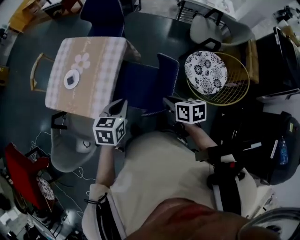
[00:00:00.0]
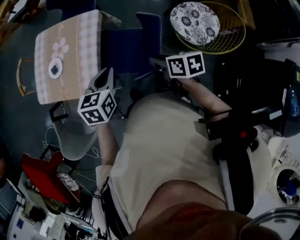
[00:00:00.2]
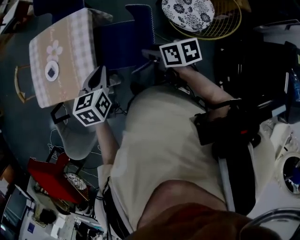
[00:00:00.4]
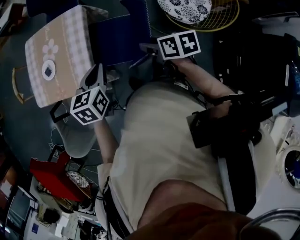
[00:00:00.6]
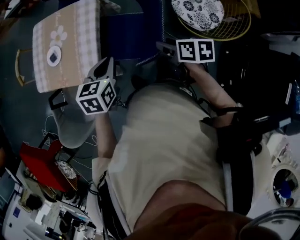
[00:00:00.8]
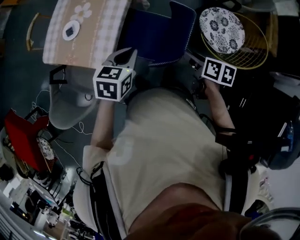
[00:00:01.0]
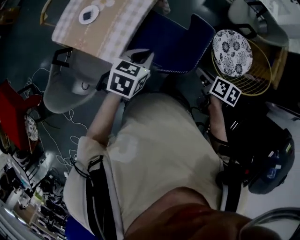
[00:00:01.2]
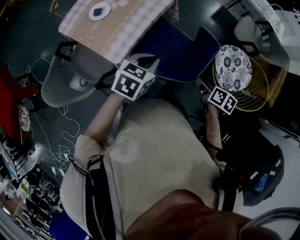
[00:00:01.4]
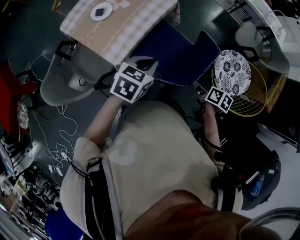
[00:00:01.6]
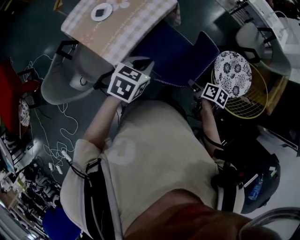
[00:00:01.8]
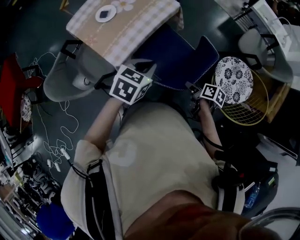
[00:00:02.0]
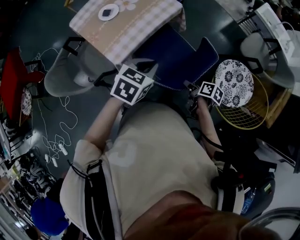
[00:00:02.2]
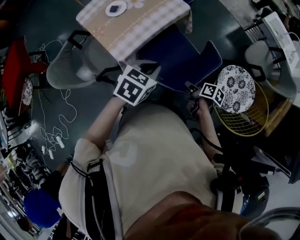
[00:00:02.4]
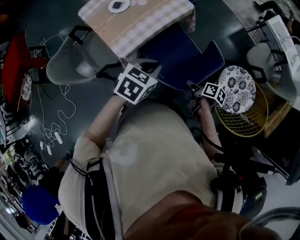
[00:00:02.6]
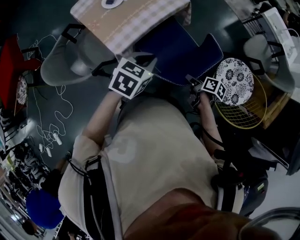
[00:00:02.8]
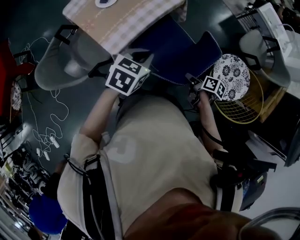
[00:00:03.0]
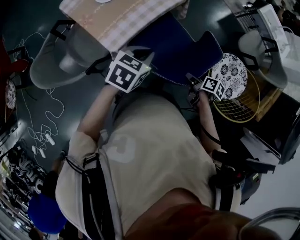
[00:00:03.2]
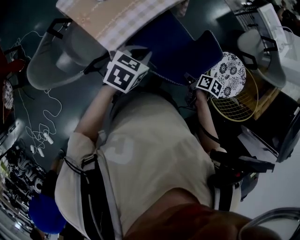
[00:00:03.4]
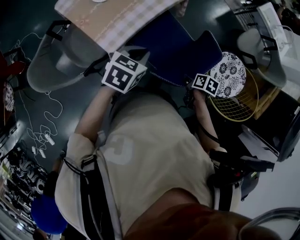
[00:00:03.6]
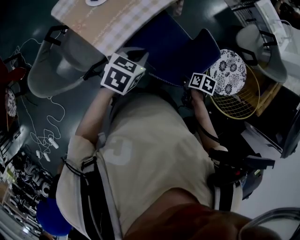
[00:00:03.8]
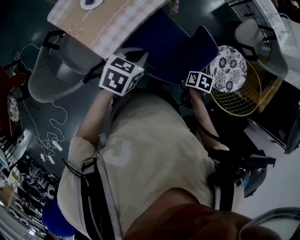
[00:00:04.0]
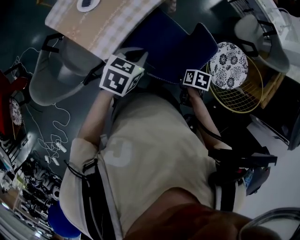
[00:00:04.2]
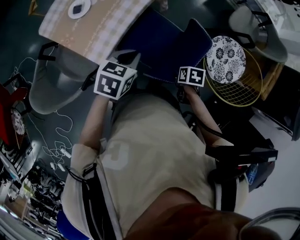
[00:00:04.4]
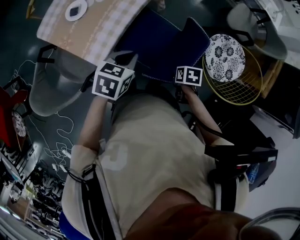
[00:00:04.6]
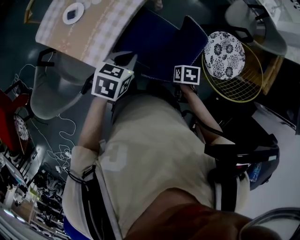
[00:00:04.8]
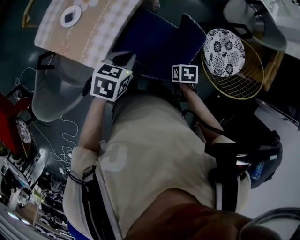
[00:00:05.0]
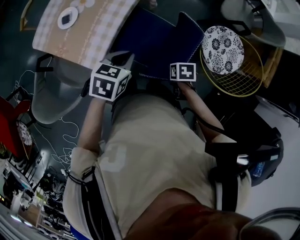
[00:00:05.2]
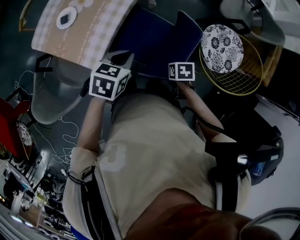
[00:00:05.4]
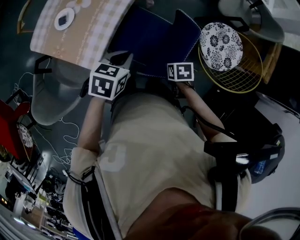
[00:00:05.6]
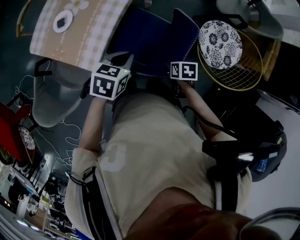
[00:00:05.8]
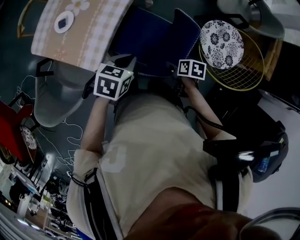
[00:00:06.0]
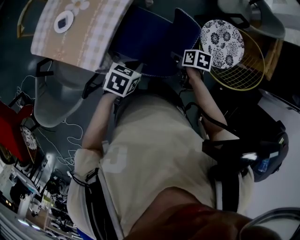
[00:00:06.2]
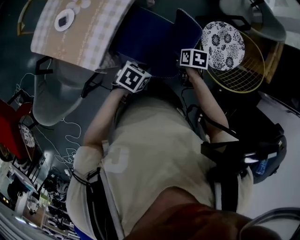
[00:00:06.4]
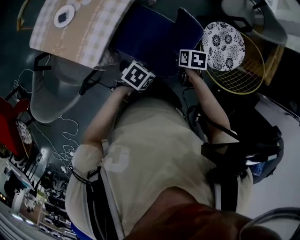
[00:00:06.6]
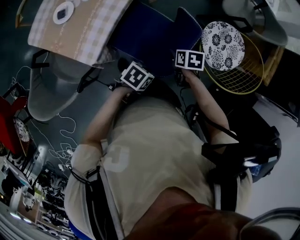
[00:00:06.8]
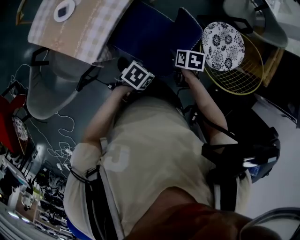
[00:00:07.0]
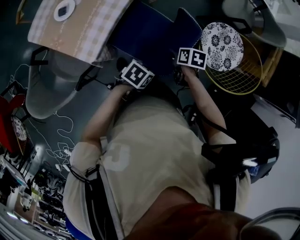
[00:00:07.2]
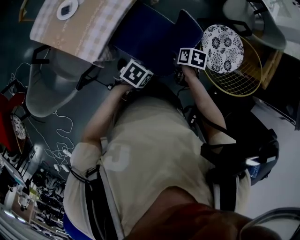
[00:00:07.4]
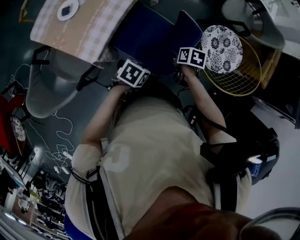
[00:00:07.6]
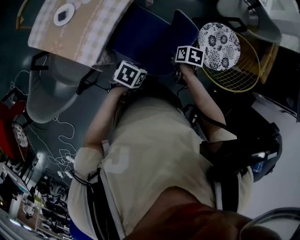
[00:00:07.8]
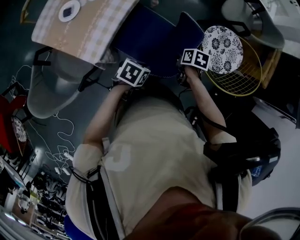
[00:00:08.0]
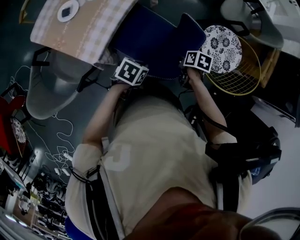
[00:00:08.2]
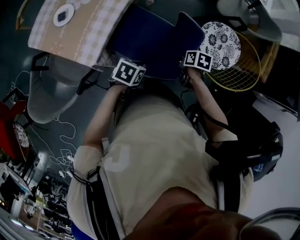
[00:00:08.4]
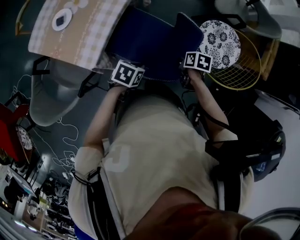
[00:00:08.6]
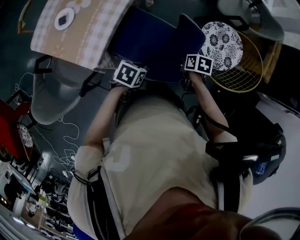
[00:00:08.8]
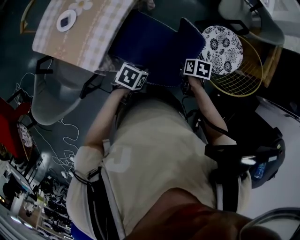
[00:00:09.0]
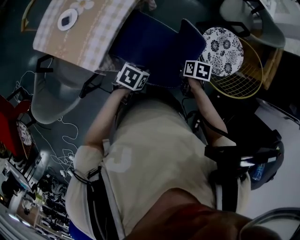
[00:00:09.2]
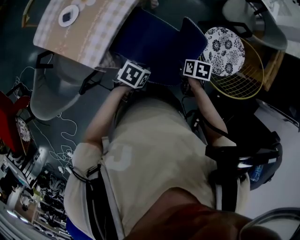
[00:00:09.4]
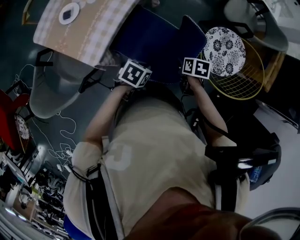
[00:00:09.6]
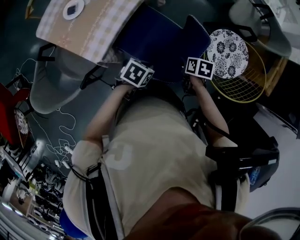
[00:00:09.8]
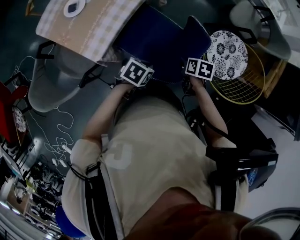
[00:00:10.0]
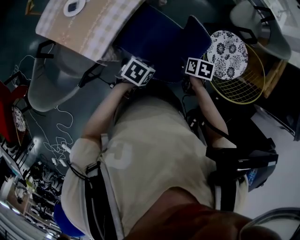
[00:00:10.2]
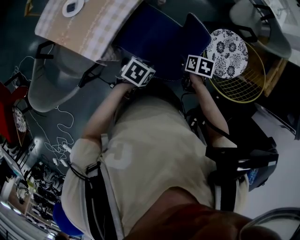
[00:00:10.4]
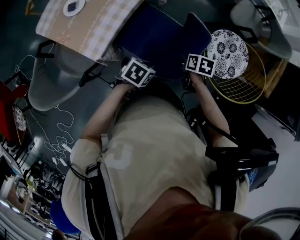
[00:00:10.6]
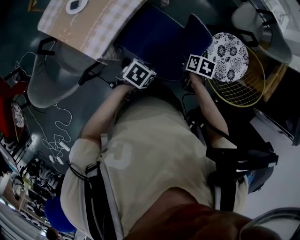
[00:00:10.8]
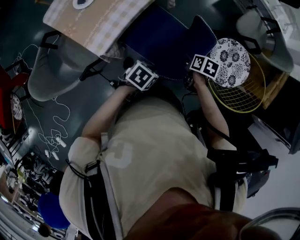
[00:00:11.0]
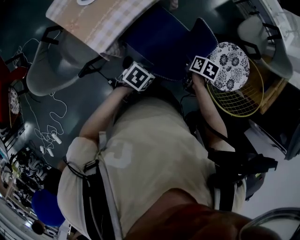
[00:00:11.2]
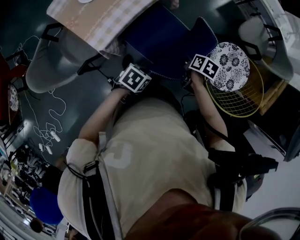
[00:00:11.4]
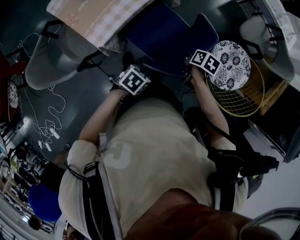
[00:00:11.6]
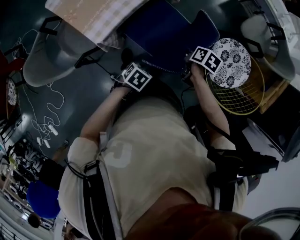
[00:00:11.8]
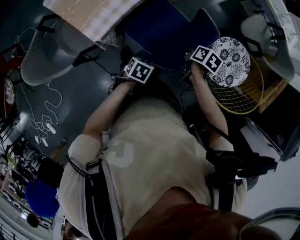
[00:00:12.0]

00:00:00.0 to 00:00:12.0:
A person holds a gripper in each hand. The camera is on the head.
00:00:06.0 to 00:00:07.6: The left gripper is displaced downward by roughly 10 cm.
00:00:10.4 to 00:00:12.0: The left gripper is displaced downward by approximately 10 cm.

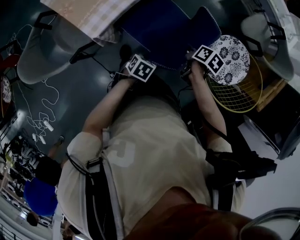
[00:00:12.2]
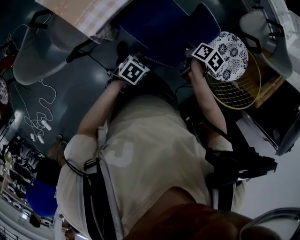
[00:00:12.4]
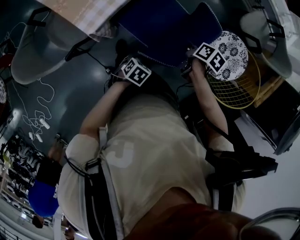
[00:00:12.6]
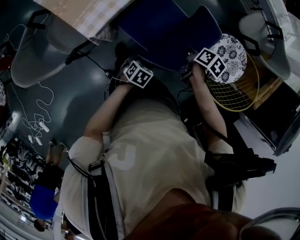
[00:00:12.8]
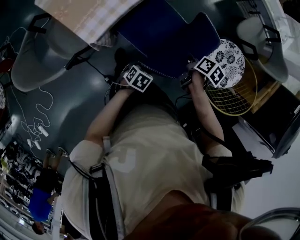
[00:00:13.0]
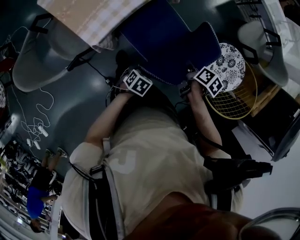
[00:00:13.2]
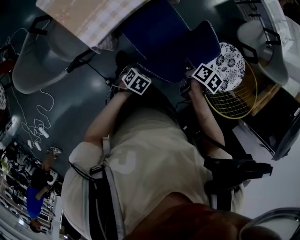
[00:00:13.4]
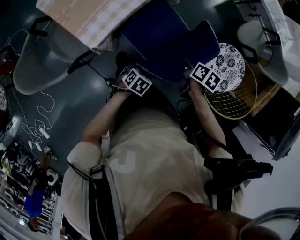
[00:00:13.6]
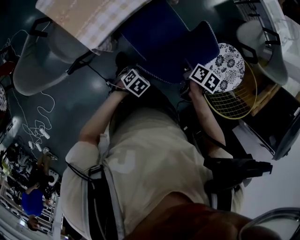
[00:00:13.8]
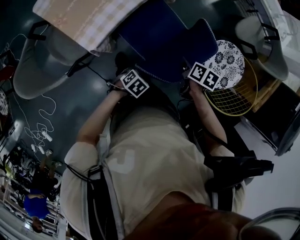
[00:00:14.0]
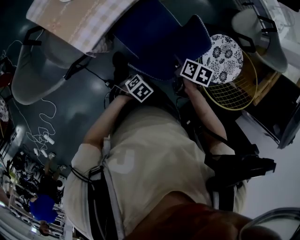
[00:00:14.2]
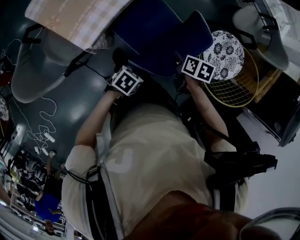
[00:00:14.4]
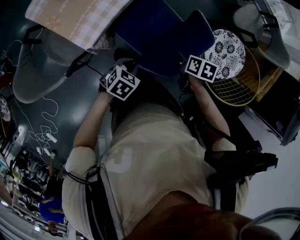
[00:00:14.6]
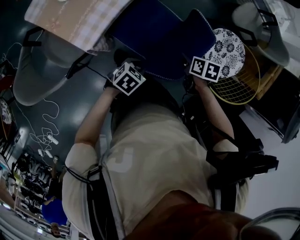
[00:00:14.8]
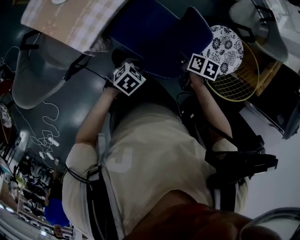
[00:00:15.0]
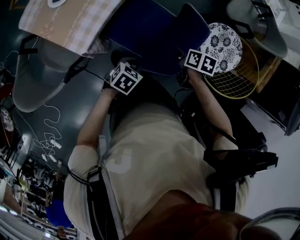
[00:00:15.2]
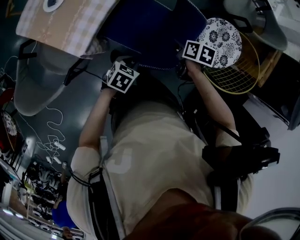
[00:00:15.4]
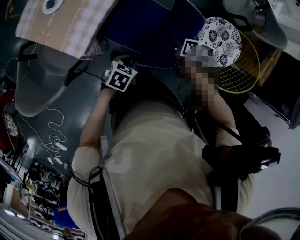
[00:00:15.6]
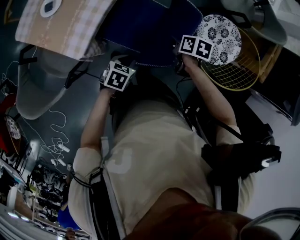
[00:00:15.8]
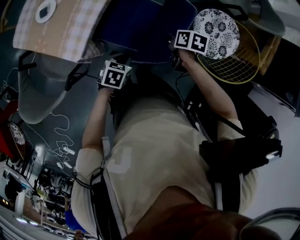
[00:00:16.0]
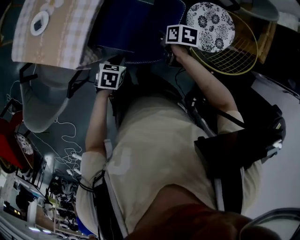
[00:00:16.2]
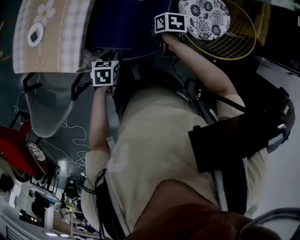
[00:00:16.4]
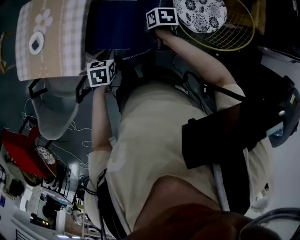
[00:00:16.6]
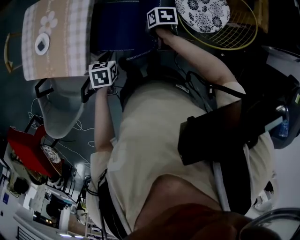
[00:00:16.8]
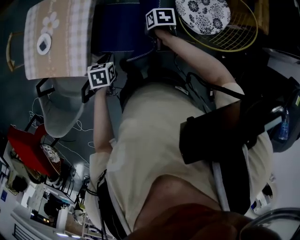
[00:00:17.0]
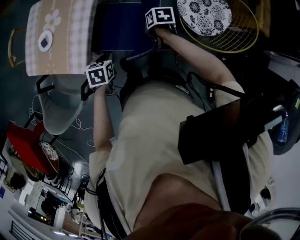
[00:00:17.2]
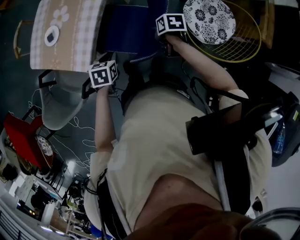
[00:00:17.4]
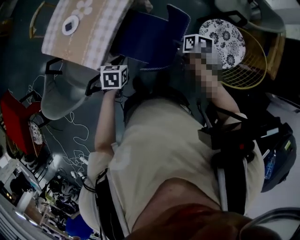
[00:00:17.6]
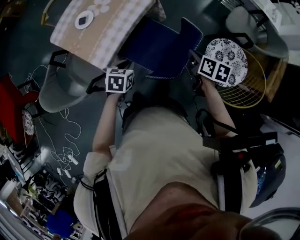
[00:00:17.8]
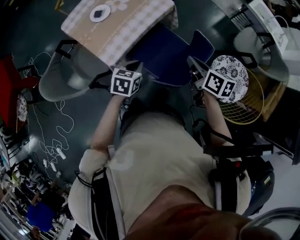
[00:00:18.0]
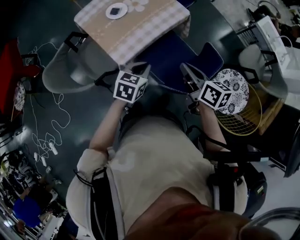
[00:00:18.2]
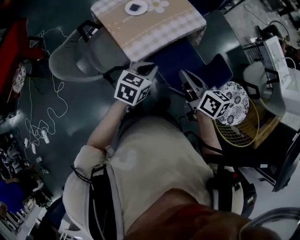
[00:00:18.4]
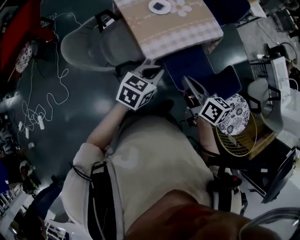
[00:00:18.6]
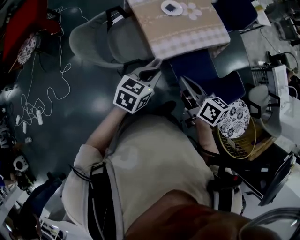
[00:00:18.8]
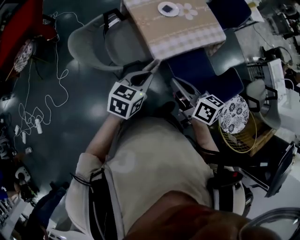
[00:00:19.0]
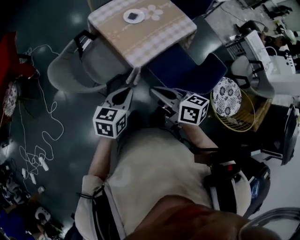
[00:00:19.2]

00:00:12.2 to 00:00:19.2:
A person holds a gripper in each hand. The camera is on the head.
00:00:12.2 to 00:00:13.6: The left gripper opens up.
00:00:13.6 to 00:00:15.0: The left gripper is displaced upward by roughly 5 cm, and changes its angle by approximately 20 degrees.
00:00:15.0 to 00:00:16.4: The left gripper ends up approximately 10 cm from where it was.
00:00:16.4 to 00:00:17.8: The left gripper shifts some 10 cm upward.
00:00:17.8 to 00:00:19.2: The left gripper changes place by approximately 35 cm, and turns by about 30 degrees.

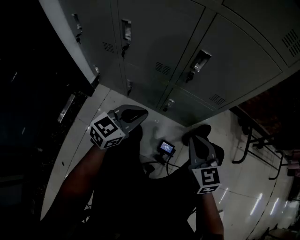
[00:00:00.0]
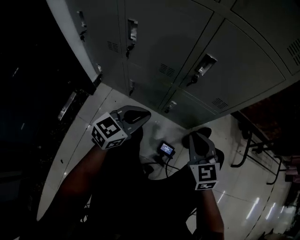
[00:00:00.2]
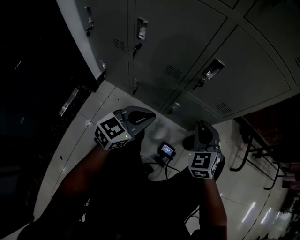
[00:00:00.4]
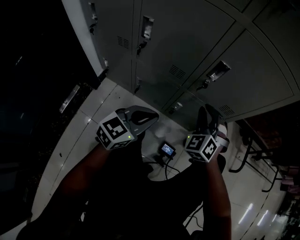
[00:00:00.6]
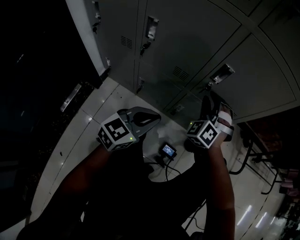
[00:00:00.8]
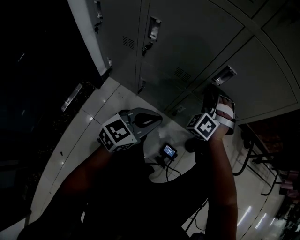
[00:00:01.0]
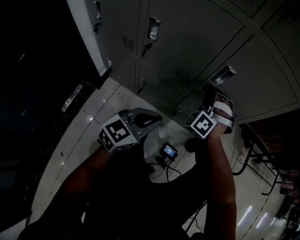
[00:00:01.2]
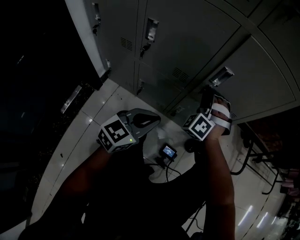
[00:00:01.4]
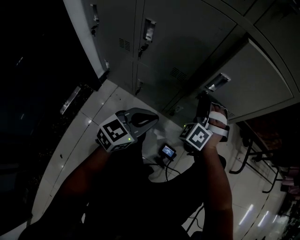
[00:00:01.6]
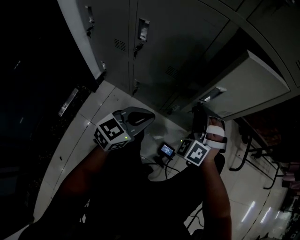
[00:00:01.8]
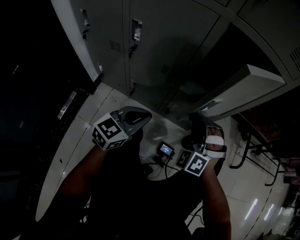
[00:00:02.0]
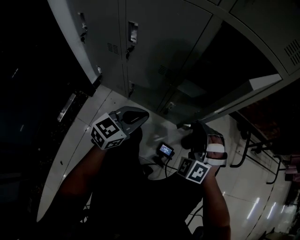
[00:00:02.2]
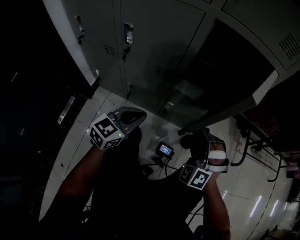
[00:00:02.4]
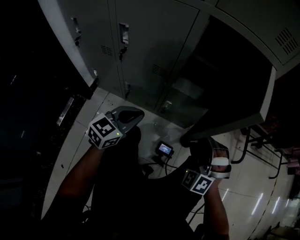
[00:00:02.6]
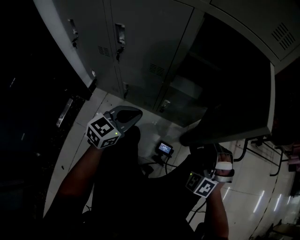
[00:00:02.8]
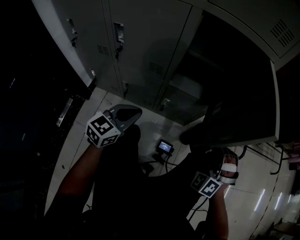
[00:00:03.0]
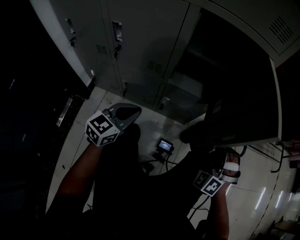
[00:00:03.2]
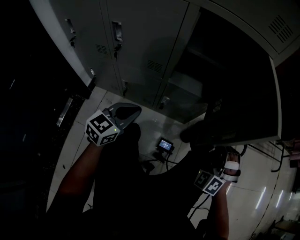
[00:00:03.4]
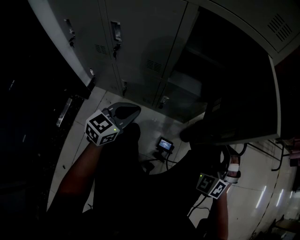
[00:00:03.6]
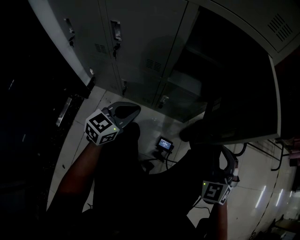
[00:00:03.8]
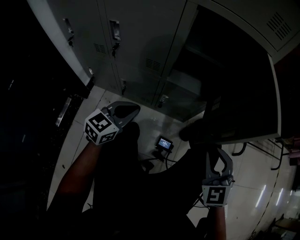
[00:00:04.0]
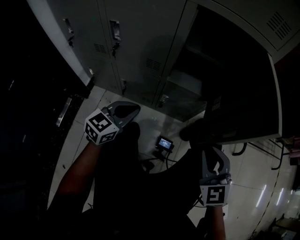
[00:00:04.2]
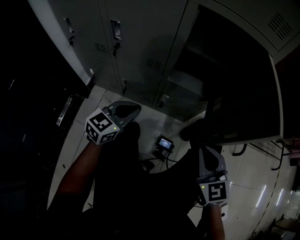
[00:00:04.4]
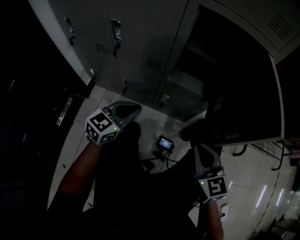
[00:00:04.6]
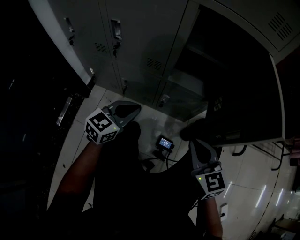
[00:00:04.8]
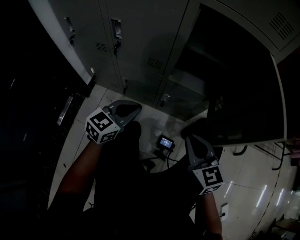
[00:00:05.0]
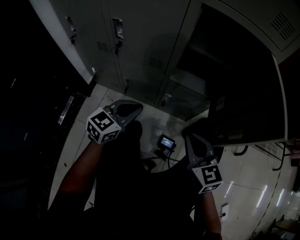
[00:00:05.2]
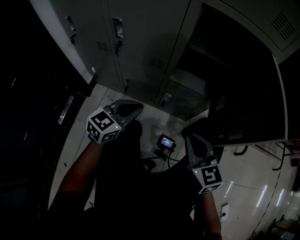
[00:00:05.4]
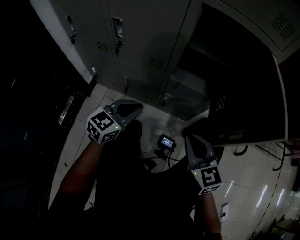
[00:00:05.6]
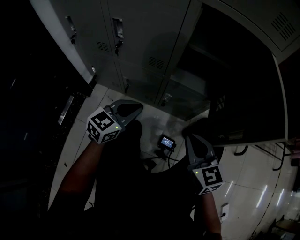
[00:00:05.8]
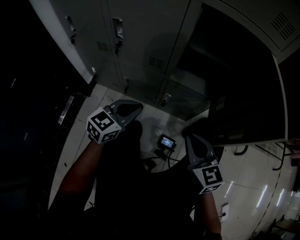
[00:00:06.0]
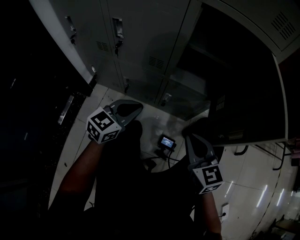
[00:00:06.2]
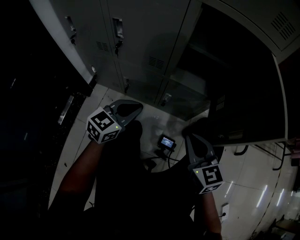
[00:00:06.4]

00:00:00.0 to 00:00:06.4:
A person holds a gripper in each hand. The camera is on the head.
00:00:00.0 to 00:00:01.6: The right gripper goes approximately 20 cm forward and to the left, rotates around the line of its fingers by roughly 70 degrees, counterclockwise from behind, and opens, then closes again.
00:00:01.6 to 00:00:03.2: The right gripper shifts approximately 25 cm to the right.
00:00:03.2 to 00:00:04.8: The right gripper heads to the left and backward, covering roughly 10 cm, and rolls clockwise, seen from behind, by some 70 degrees.
00:00:04.8 to 00:00:06.4: The grippers stay close to where they were, moving slightly.
